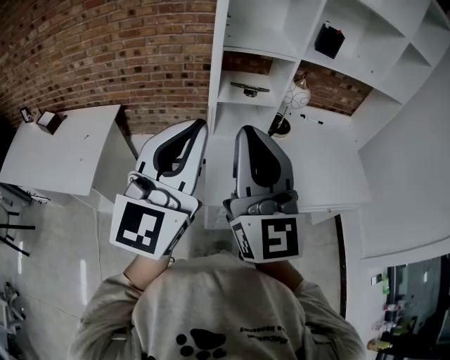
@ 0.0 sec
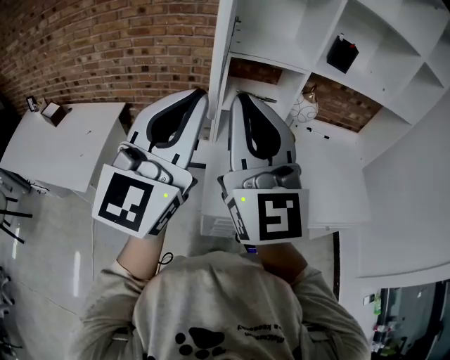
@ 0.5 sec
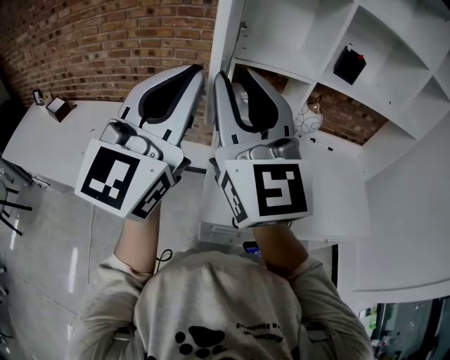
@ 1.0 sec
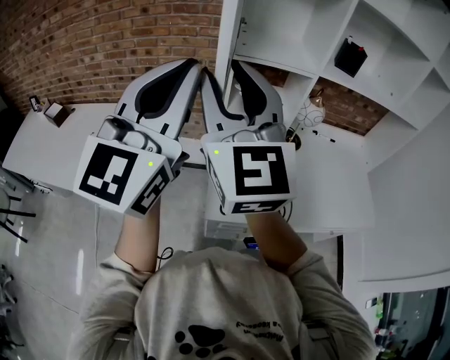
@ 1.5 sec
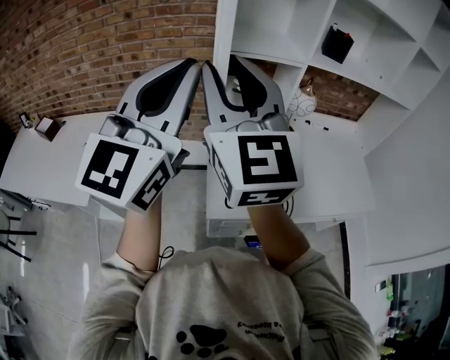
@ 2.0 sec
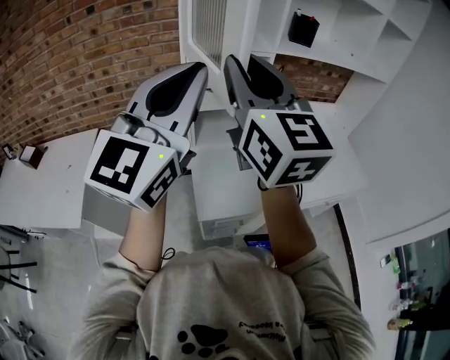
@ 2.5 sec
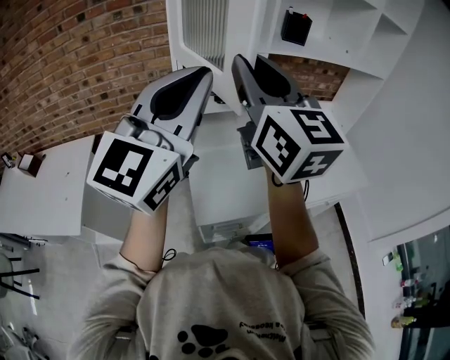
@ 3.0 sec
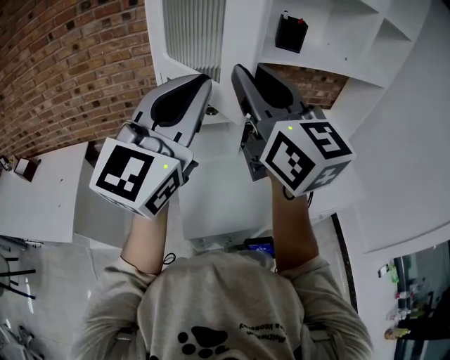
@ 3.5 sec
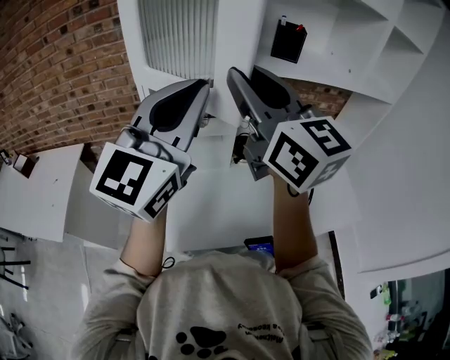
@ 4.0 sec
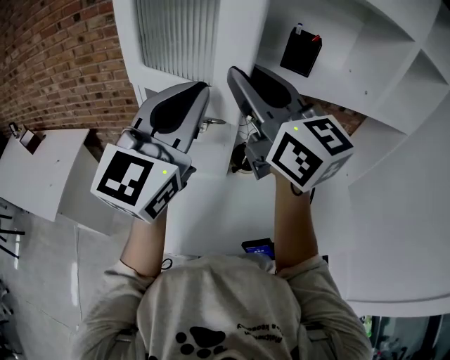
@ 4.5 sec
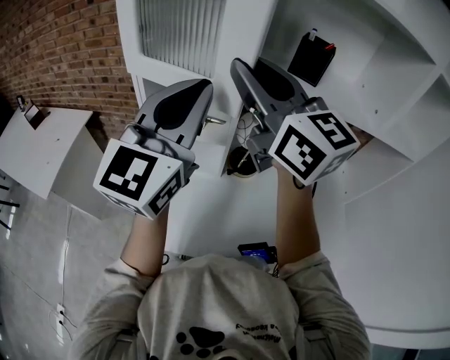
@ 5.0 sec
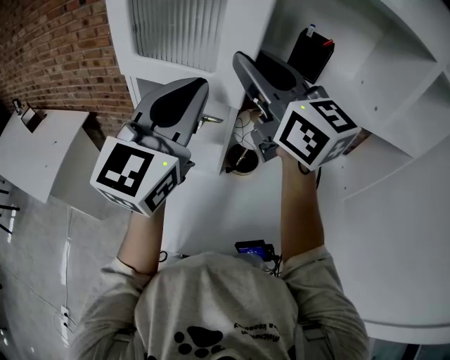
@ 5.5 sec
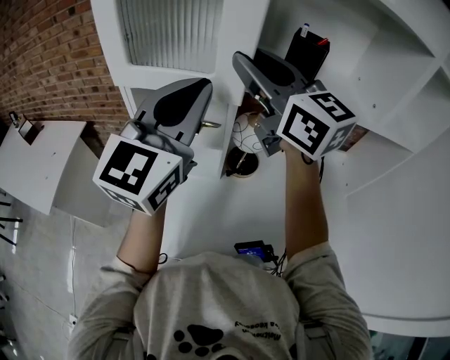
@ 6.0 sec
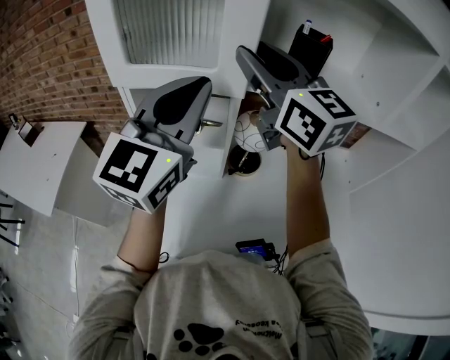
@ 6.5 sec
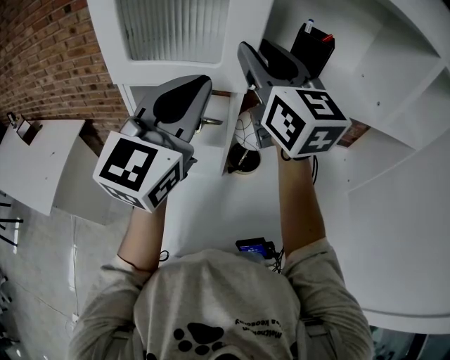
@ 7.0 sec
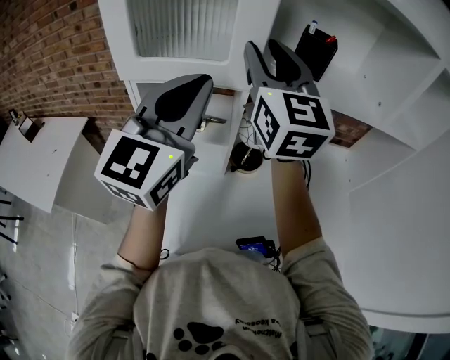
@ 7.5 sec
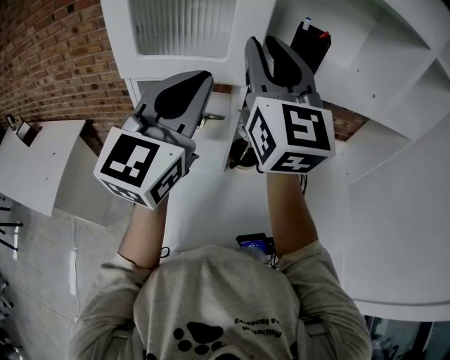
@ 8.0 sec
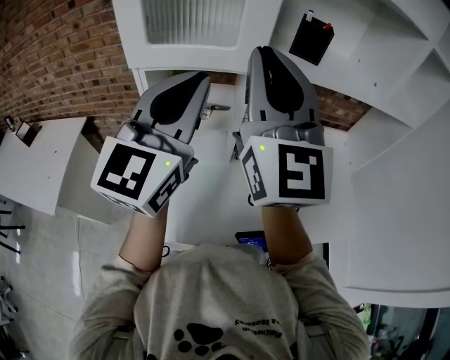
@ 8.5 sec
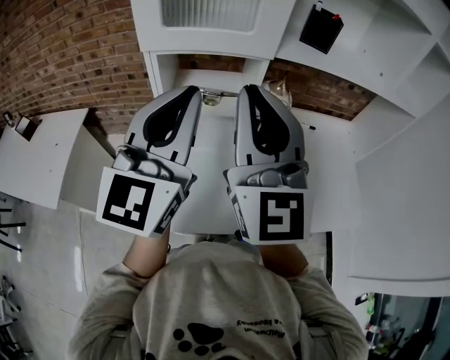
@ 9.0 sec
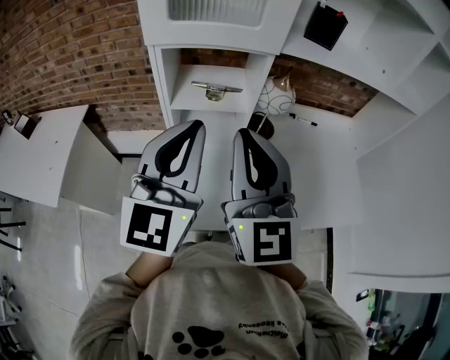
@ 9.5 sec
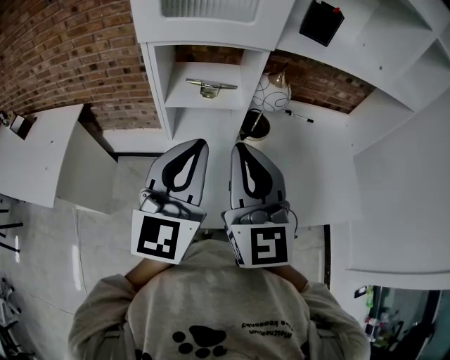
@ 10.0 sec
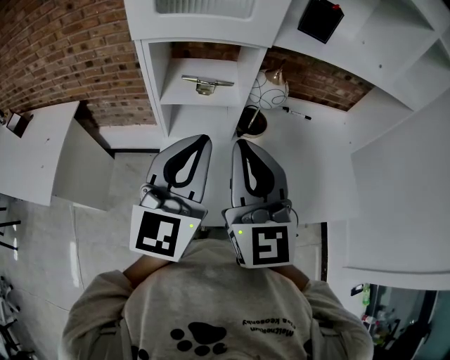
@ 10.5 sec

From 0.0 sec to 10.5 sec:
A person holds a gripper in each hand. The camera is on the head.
From 0.0 sec to 2.0 sec: The right gripper travels forward, upward and to the left by roughly 15 cm, and opens. Meanwhile the left gripper moves forward and upward, roughly 10 cm.
From 2.0 sec to 4.0 sec: The two grippers go about 25 cm to the right and forward.
From 4.0 sec to 6.5 sec: Both grippers travel together forward and to the right, approximately 15 cm.
From 6.5 sec to 8.5 sec: The right gripper is displaced backward by about 15 cm, swivels approximately 30 degrees, and closes, while the left gripper heads backward, covering about 5 cm.
From 8.5 sec to 10.5 sec: Both grippers move downward and backward, approximately 15 cm.

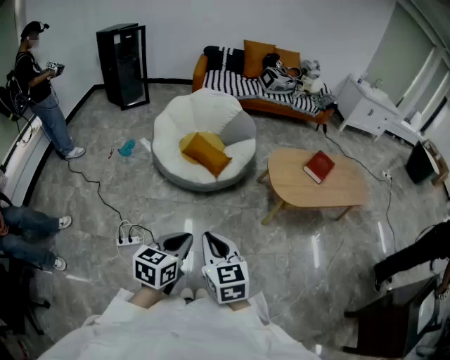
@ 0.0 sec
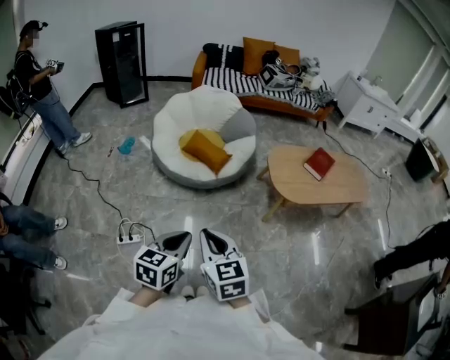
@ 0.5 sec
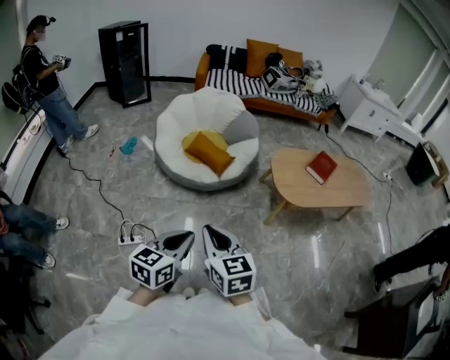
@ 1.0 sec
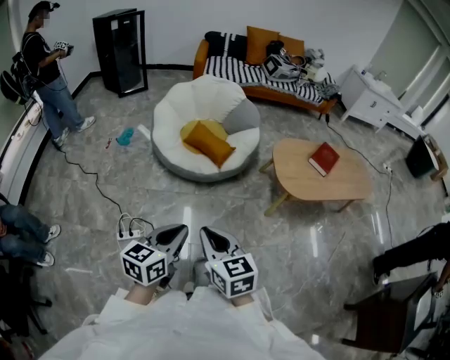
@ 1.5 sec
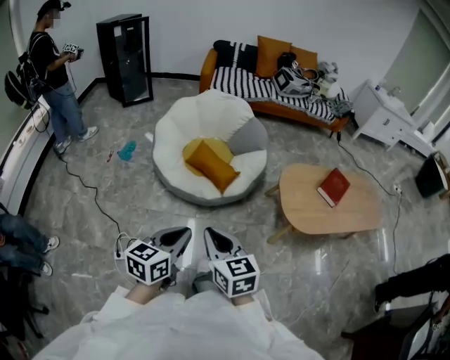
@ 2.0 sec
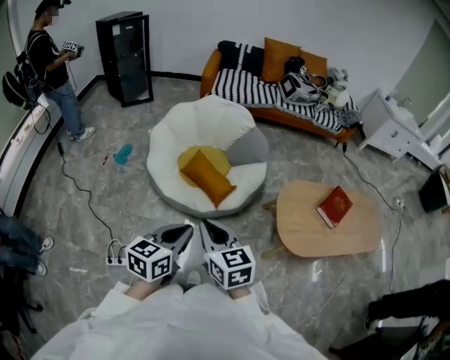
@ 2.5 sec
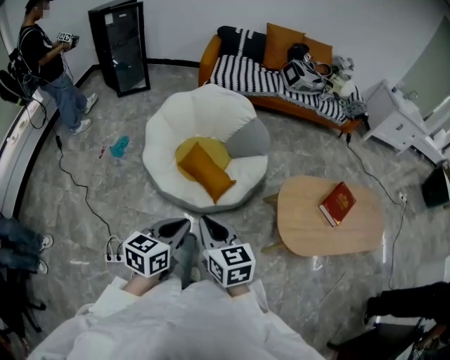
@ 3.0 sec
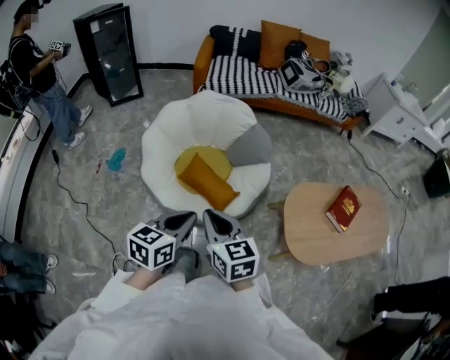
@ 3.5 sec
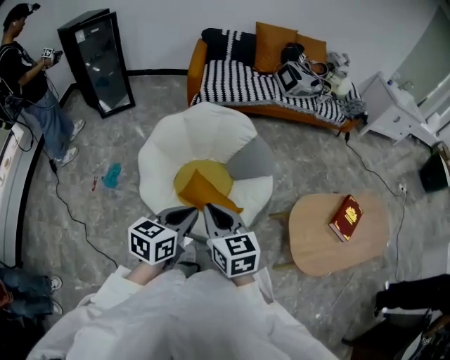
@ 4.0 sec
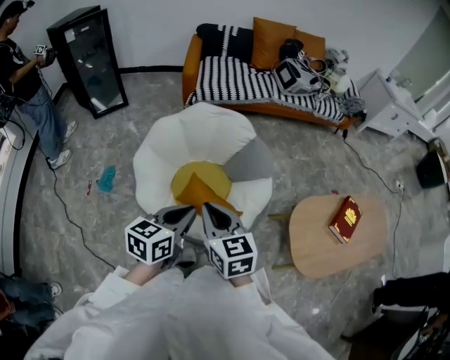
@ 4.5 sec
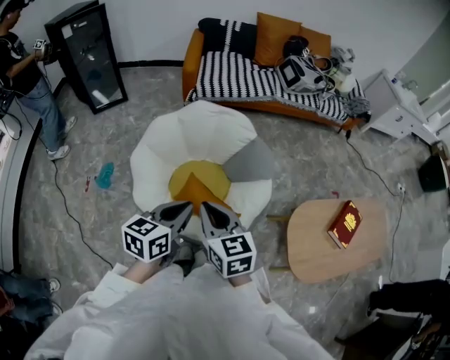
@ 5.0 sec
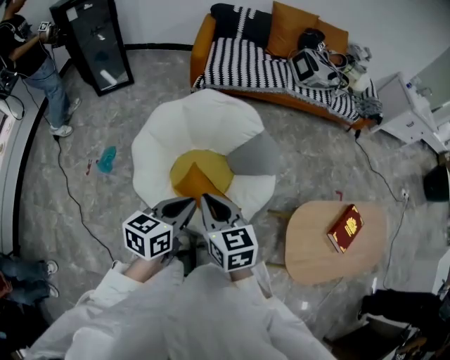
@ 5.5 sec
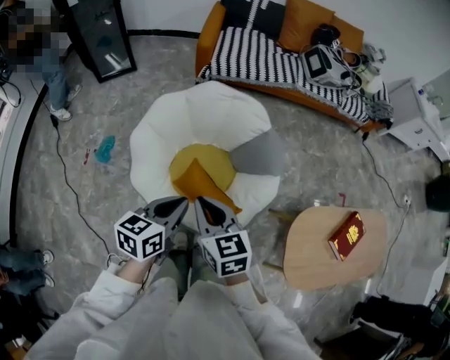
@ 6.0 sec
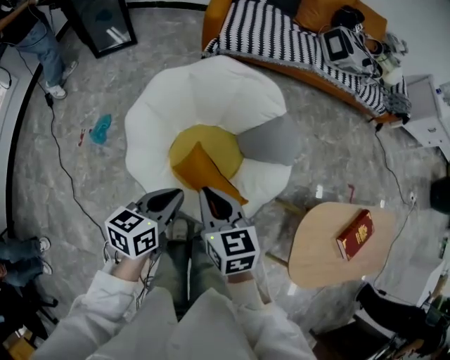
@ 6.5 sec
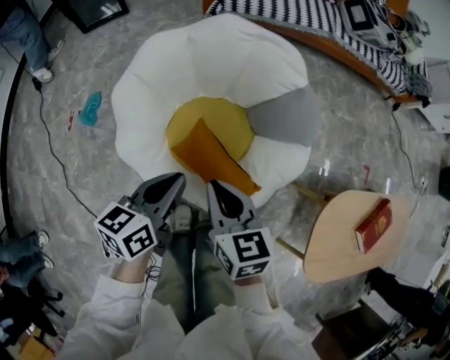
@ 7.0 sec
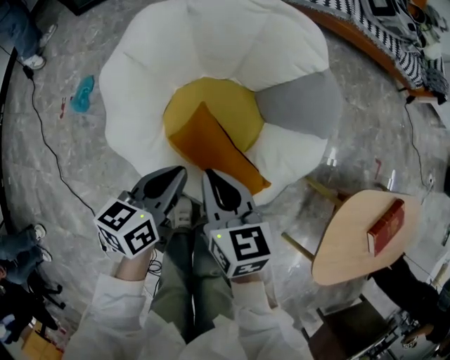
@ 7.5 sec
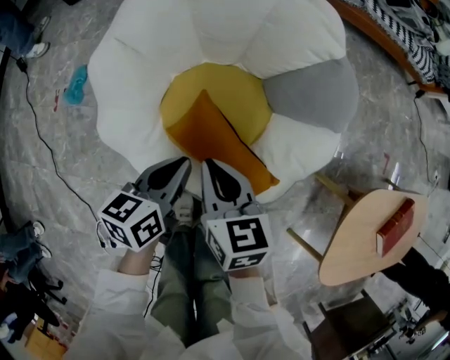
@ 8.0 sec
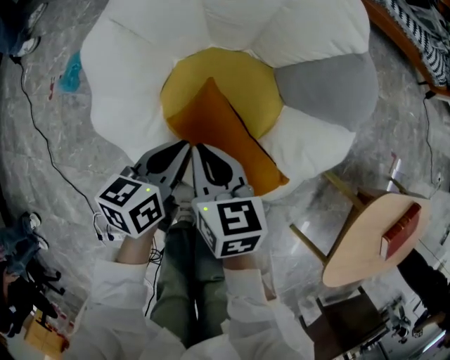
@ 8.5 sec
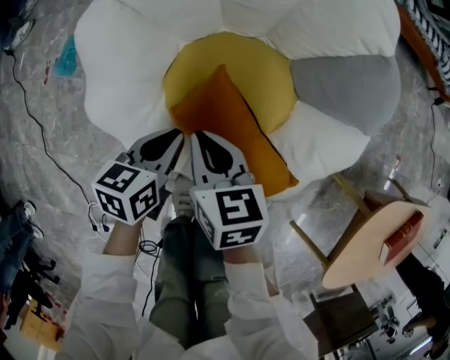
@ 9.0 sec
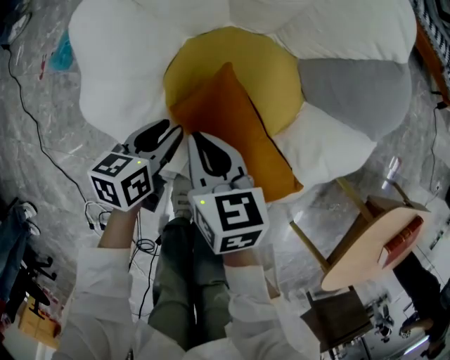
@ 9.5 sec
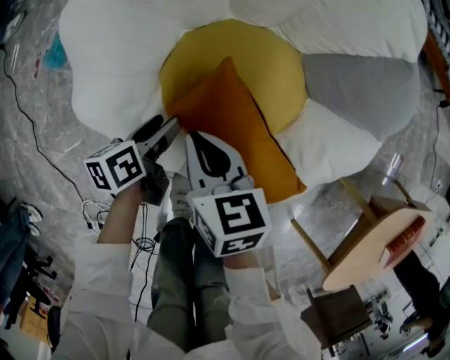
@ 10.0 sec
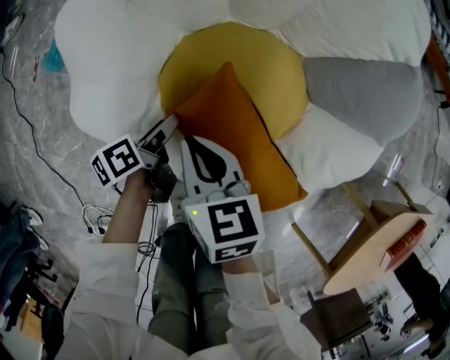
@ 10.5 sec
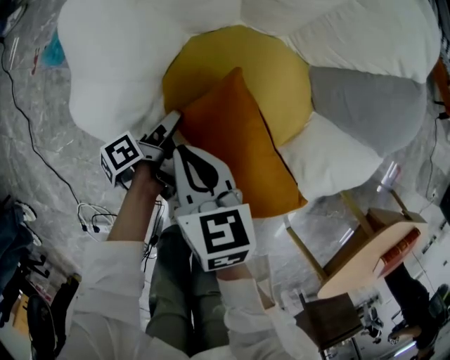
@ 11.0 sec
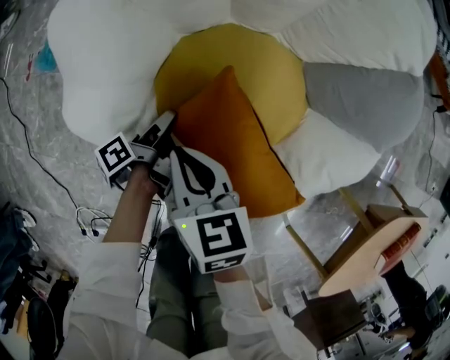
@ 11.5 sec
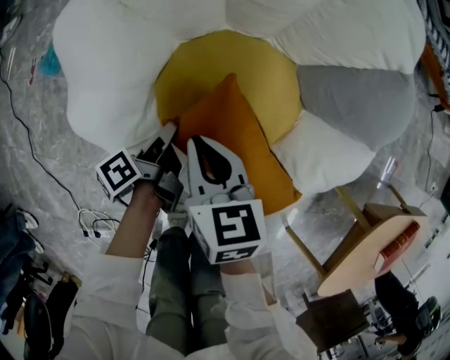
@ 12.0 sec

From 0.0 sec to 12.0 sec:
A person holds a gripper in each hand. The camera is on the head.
From 0.0 sec to 2.0 sec: The grippers both shift forward by about 20 cm.
From 2.0 sec to 4.0 sec: The two grippers travel together, forward, roughly 50 cm.
From 4.0 sec to 6.0 sec: Both grippers travel together forward and downward, roughly 15 cm.
From 6.0 sec to 8.0 sec: The grippers both shift downward by about 35 cm.
From 8.0 sec to 10.0 sec: The left gripper moves downward, approximately 25 cm, swivels some 30 degrees, and opens its fingers; the right gripper travels downward and to the left by some 20 cm.
From 10.0 sec to 12.0 sec: The left gripper changes its angle by approximately 40 degrees, and closes.

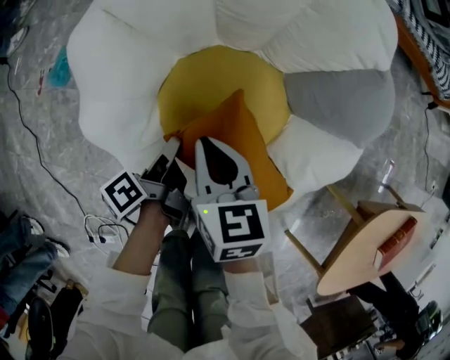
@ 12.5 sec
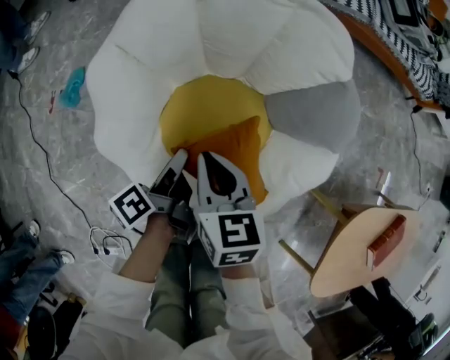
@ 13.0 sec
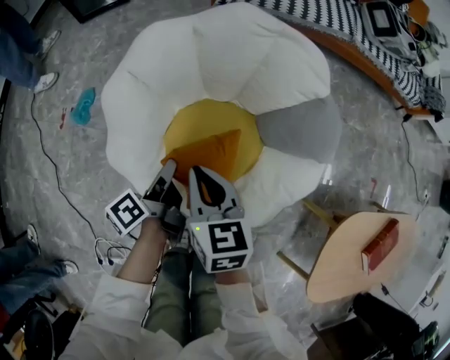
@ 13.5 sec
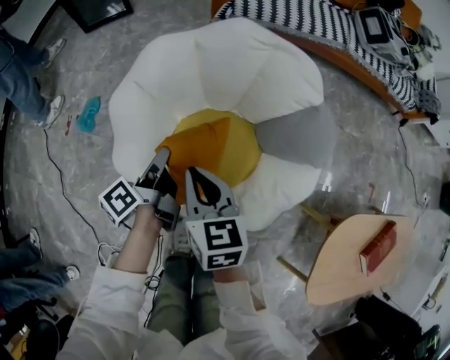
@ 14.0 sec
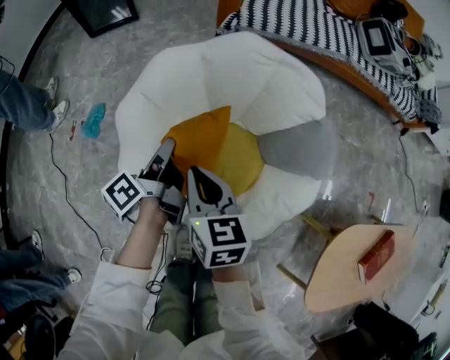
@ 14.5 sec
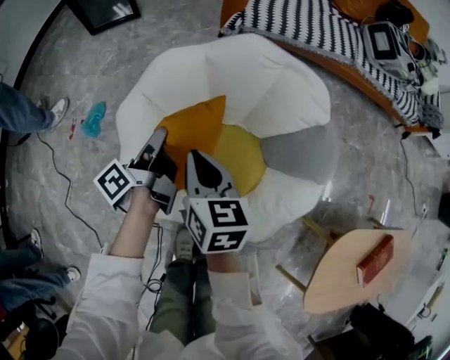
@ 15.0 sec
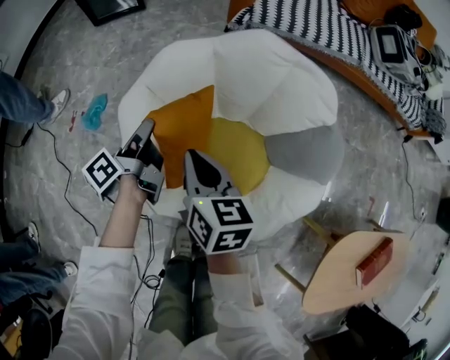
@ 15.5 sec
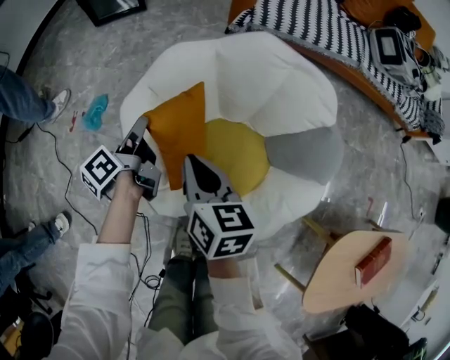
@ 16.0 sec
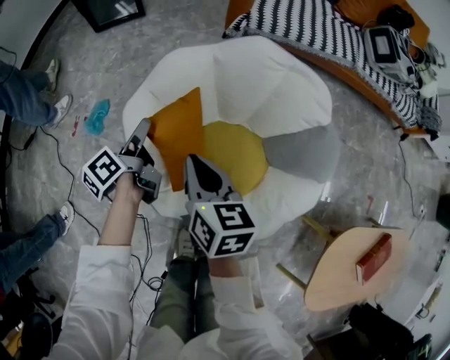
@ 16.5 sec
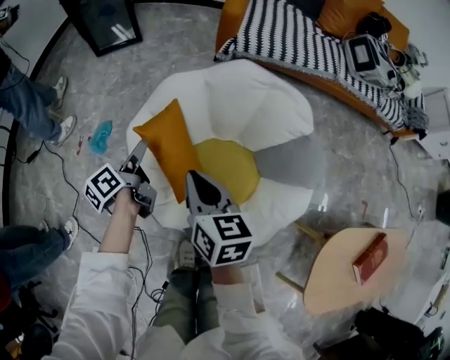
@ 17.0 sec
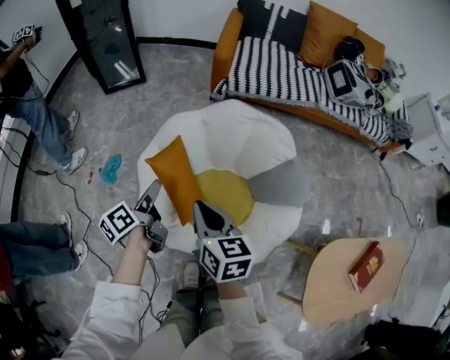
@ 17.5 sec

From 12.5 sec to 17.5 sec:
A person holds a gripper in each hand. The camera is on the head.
From 12.5 sec to 15.0 sec: The left gripper travels upward and forward by approximately 30 cm, and swivels approximately 20 degrees, while the right gripper goes some 20 cm upward.
From 15.0 sec to 17.5 sec: The left gripper goes some 15 cm upward, backward and to the left, changes its angle by roughly 20 degrees, and opens up; the right gripper goes approximately 20 cm upward and backward.
